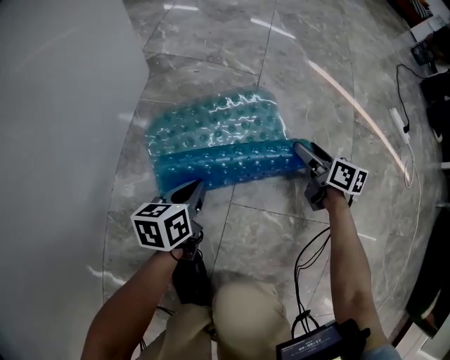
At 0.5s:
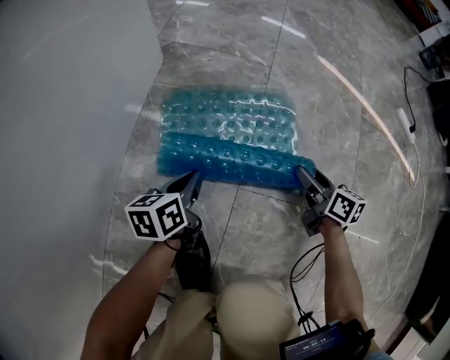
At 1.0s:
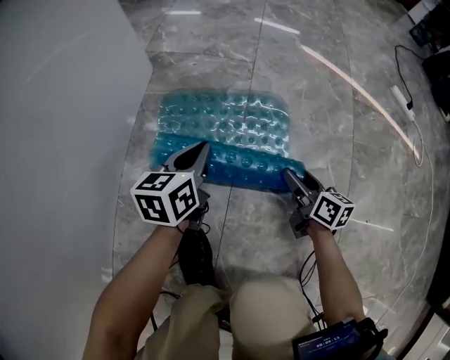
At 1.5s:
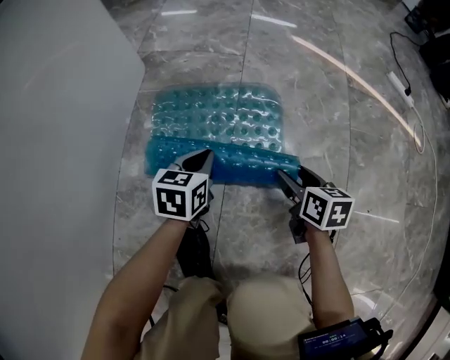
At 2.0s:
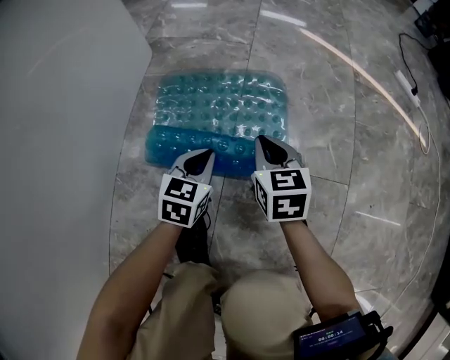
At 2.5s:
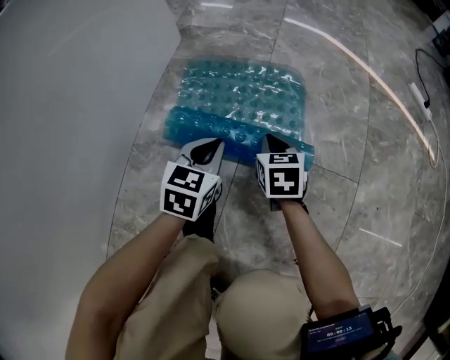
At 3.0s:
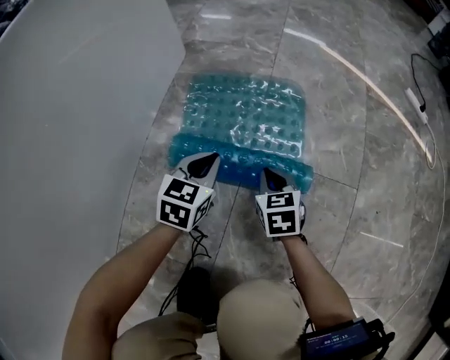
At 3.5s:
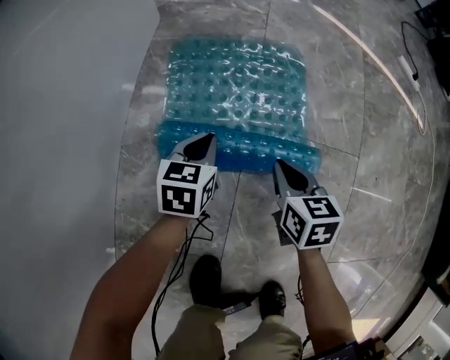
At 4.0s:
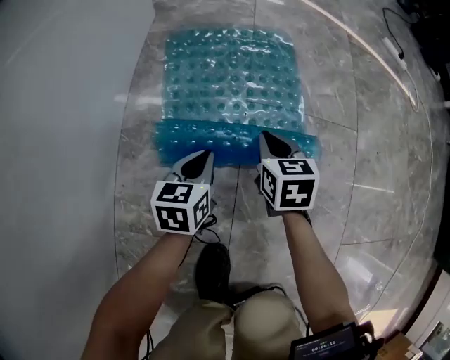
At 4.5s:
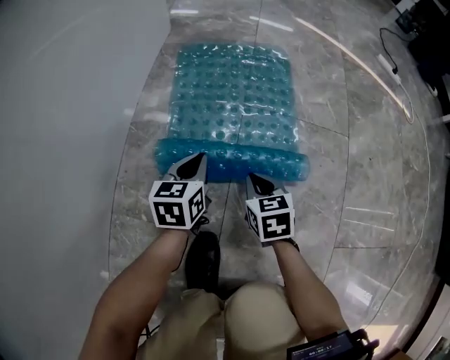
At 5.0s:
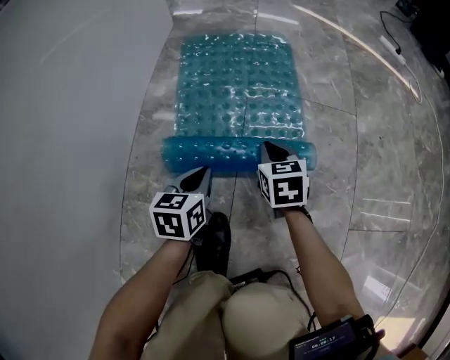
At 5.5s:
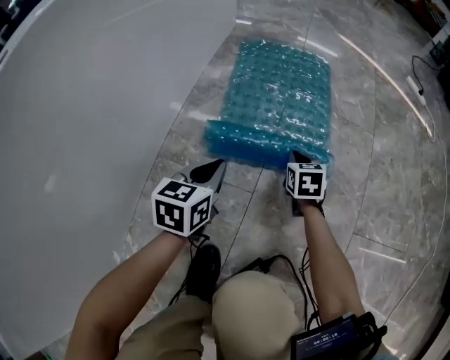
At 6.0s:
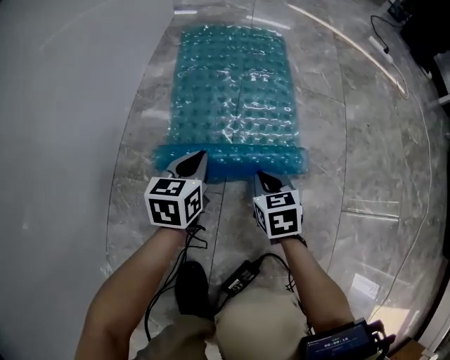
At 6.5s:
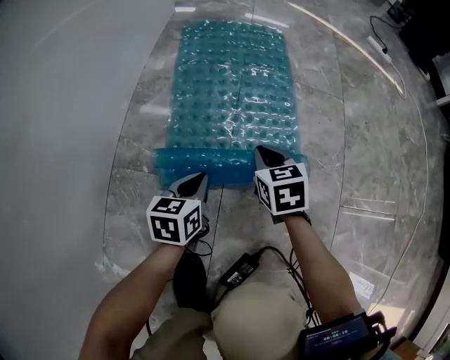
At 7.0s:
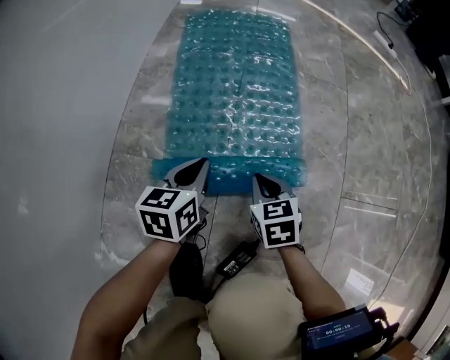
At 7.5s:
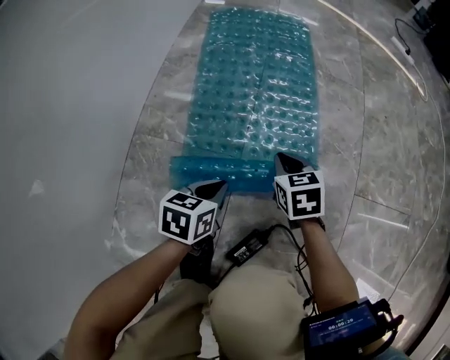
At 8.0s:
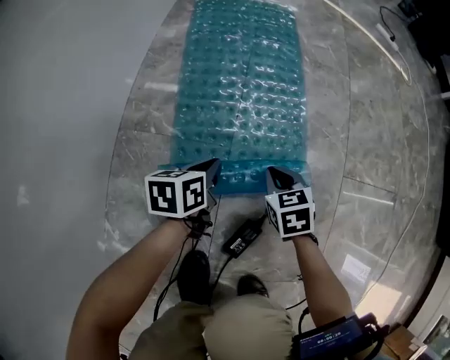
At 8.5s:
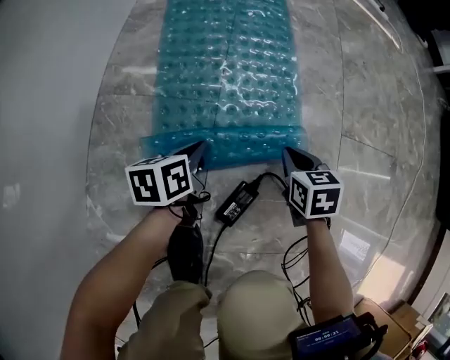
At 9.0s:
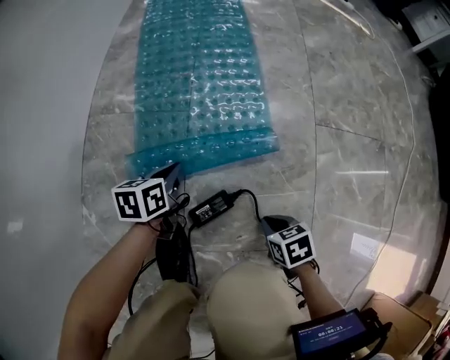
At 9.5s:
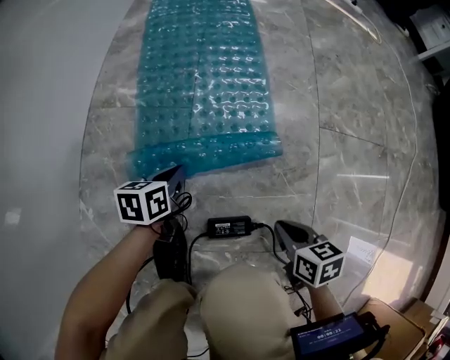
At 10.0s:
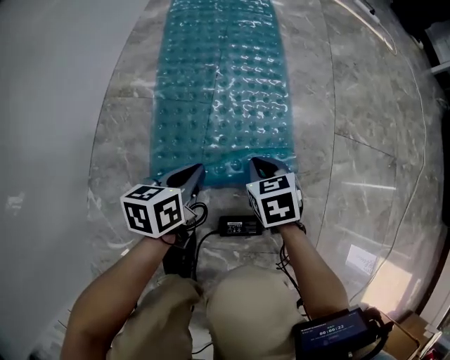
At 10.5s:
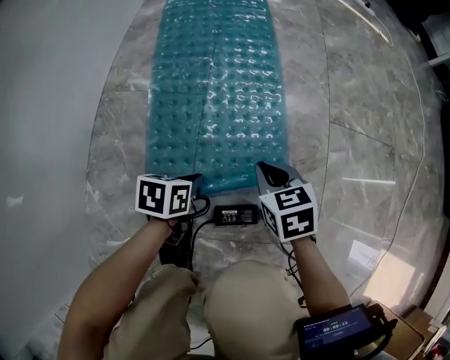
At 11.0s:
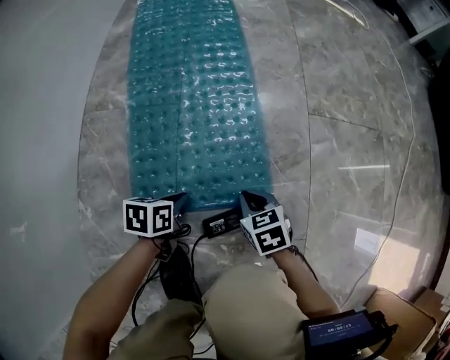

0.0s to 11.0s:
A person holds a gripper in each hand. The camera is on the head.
0.0s to 2.0s: The right gripper moves backward and to the left, some 20 cm, changes its angle by approximately 30 degrees, and closes up. The left gripper travels backward by approximately 5 cm, goes upward and returns, some 10 cm each way, and swivels approximately 40 degrees.
2.0s to 3.5s: The right gripper goes roughly 15 cm backward, while the left gripper goes some 5 cm to the left.
3.5s to 5.5s: The left gripper goes approximately 35 cm backward, while the right gripper shifts some 20 cm backward.
5.5s to 7.5s: The left gripper is displaced backward, downward and to the right by approximately 15 cm. Meanwhile the right gripper moves forward and backward over roughly 15 cm, changing direction 2 times.
7.5s to 9.0s: The right gripper shifts some 35 cm backward, and changes its angle by about 30 degrees; the left gripper travels backward by approximately 10 cm.
9.0s to 11.0s: The left gripper heads backward, covering roughly 10 cm; the right gripper moves some 15 cm forward and comes back.

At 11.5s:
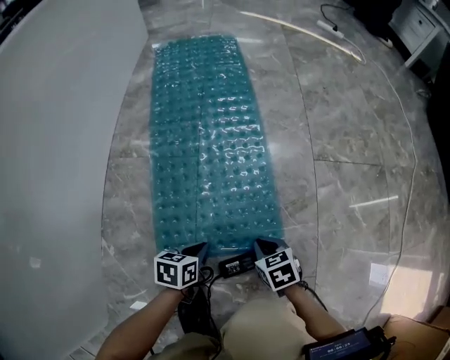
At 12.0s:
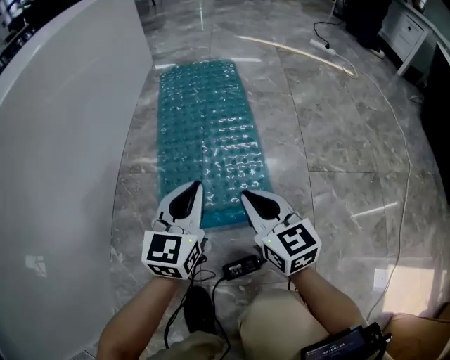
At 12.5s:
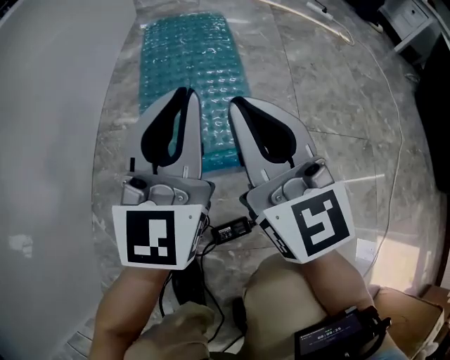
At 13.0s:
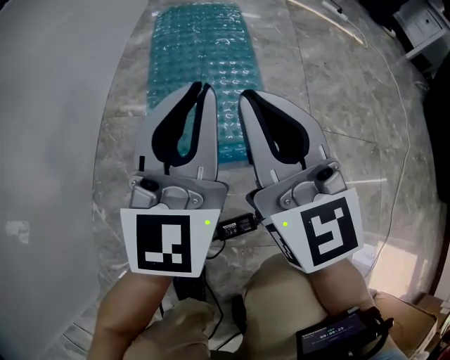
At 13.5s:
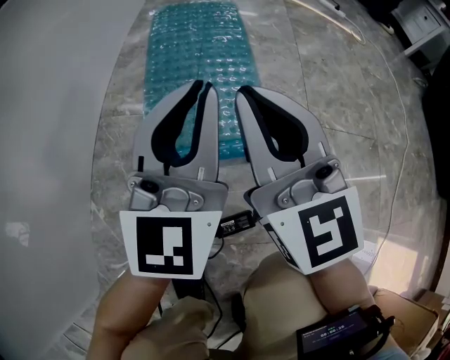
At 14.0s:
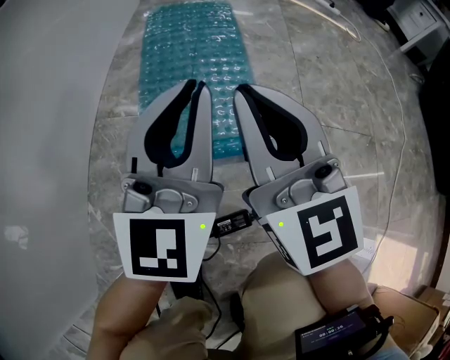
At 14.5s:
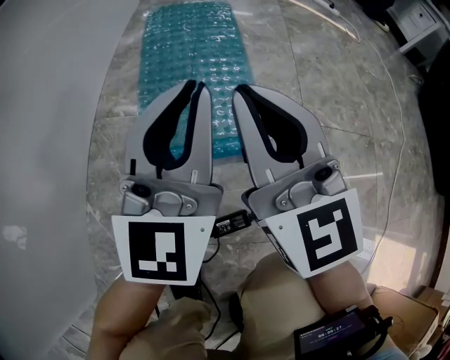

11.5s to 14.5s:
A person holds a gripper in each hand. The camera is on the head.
11.5s to 13.0s: Both grippers travel together upward, approximately 40 cm. The left gripper angles its fingers upward, by some 60 degrees. Meanwhile the right gripper tips its fingers upward by roughly 60 degrees.
13.0s to 14.5s: The two grippers keep their place.

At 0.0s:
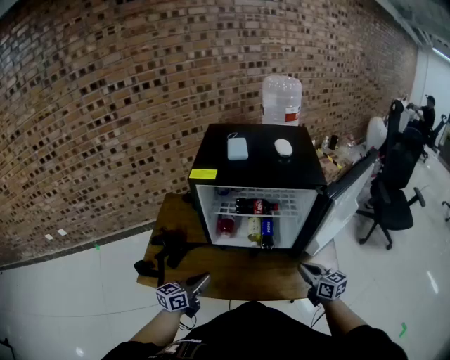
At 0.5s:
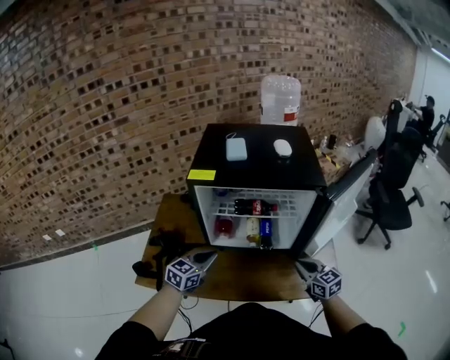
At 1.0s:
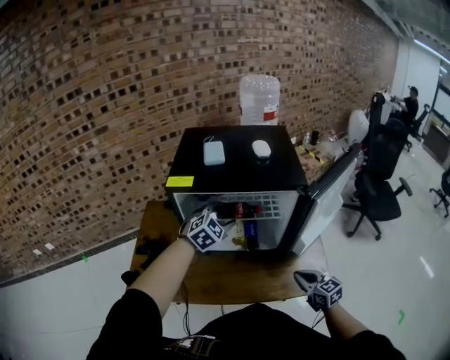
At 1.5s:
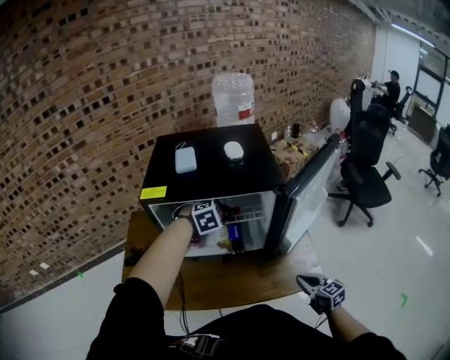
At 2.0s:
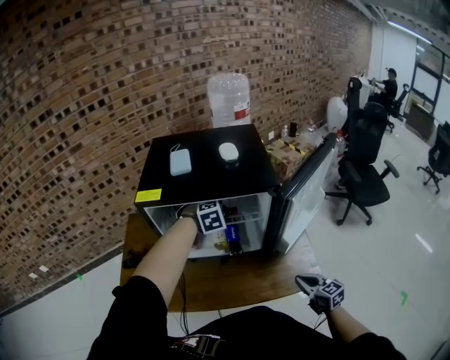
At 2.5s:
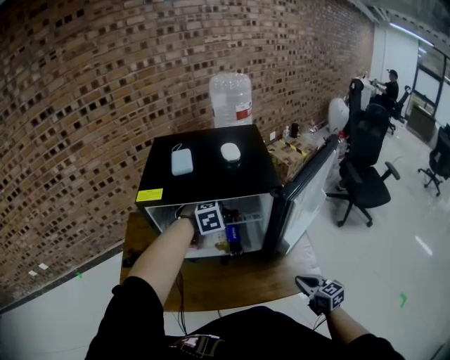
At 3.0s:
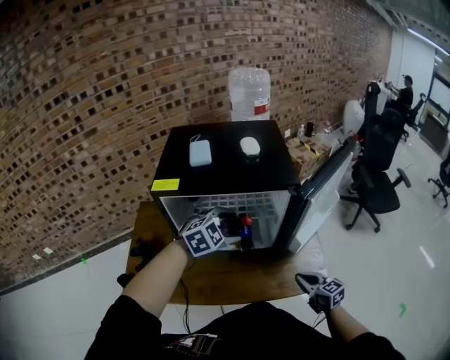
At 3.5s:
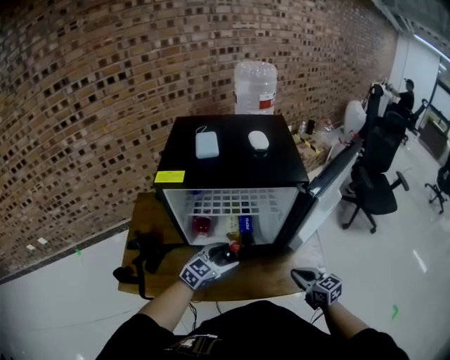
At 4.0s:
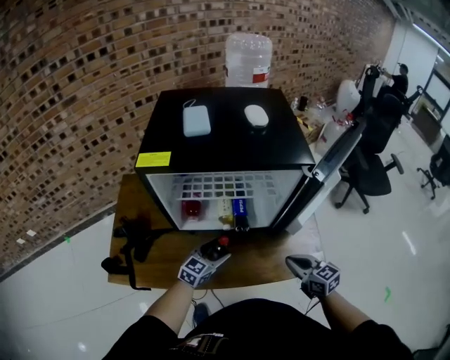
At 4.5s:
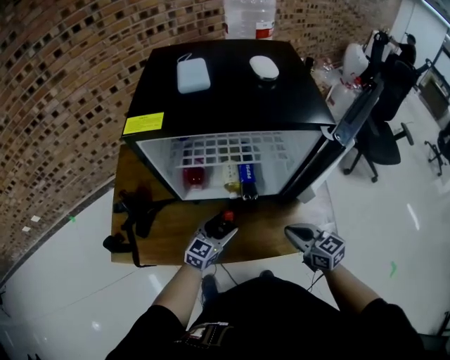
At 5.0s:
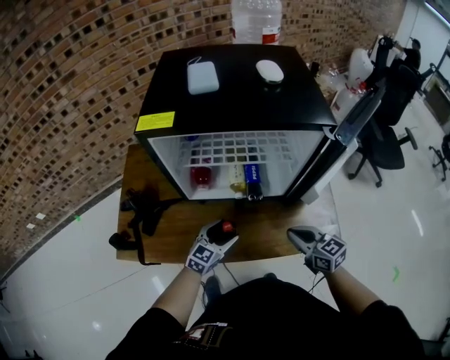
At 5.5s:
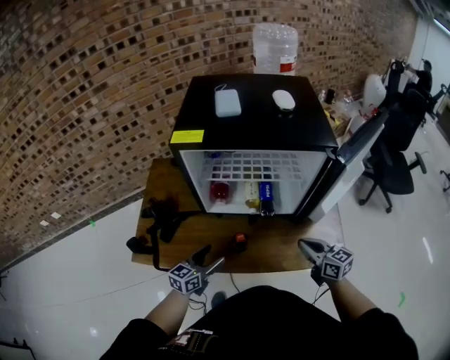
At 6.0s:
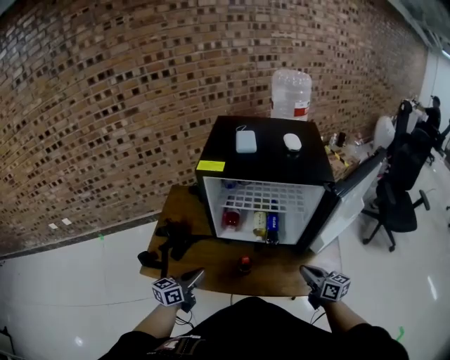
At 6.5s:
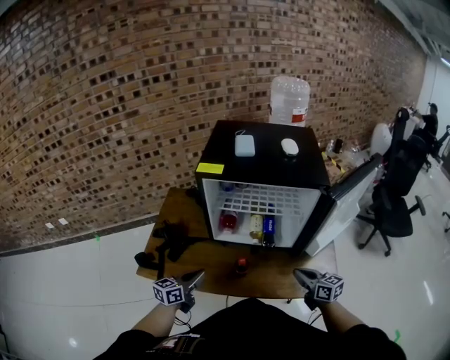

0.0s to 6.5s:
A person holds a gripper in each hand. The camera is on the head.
0.0s to 2.0s: The right gripper heads to the right and backward, covering some 10 cm, while the left gripper goes approximately 35 cm forward and to the right, twists approximately 80 degrees clockwise, seen from behind, and opens.
2.0s to 4.5s: The left gripper goes some 25 cm downward and backward, and points its fingers about 40 degrees further upward. Meanwhile the right gripper moves to the left and forward, roughly 15 cm.
4.5s to 6.5s: The left gripper is displaced to the left, backward and upward by some 25 cm, changes its angle by roughly 30 degrees, and closes. The right gripper shifts by about 5 cm.

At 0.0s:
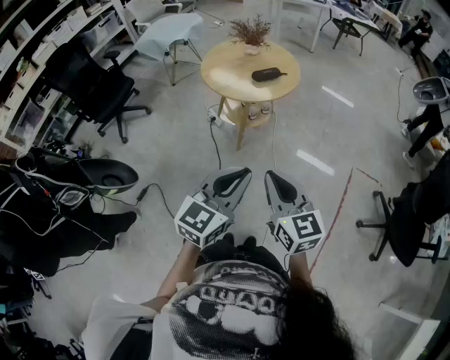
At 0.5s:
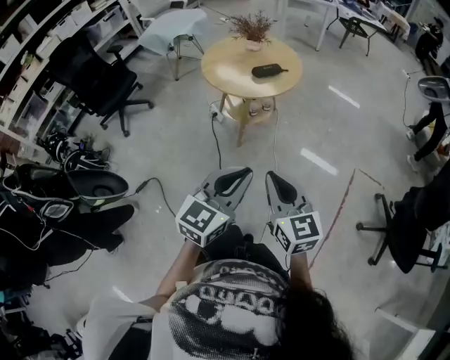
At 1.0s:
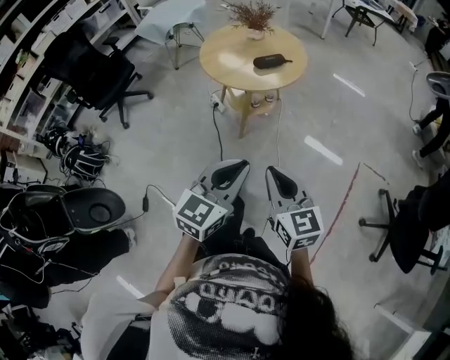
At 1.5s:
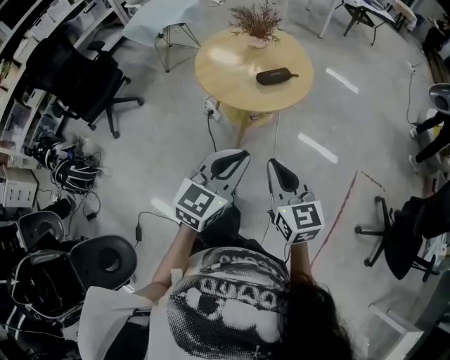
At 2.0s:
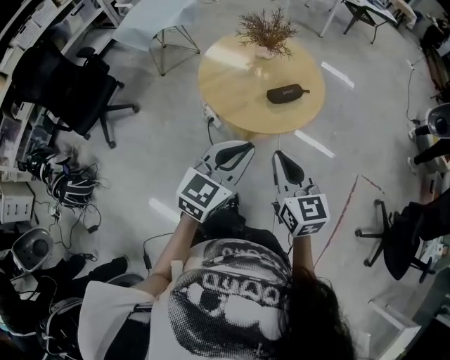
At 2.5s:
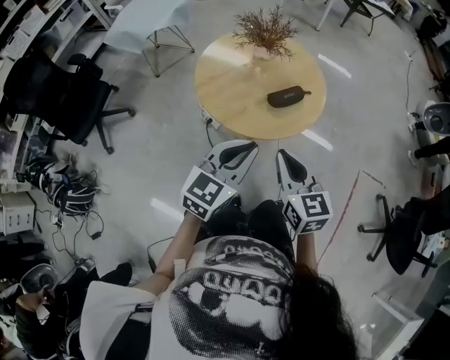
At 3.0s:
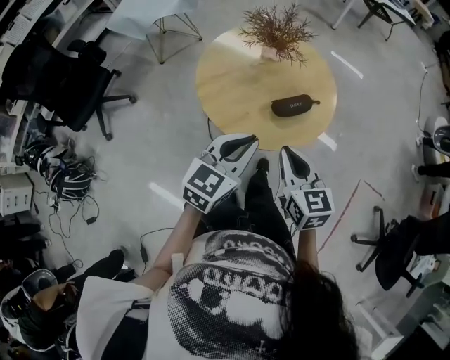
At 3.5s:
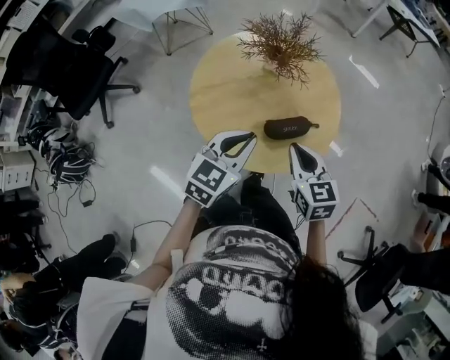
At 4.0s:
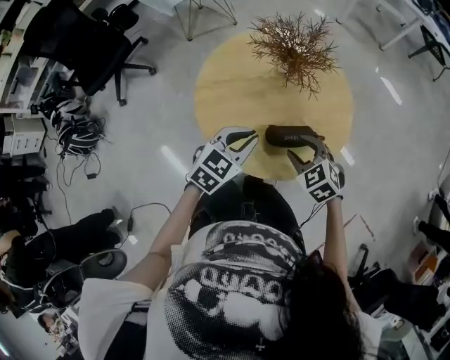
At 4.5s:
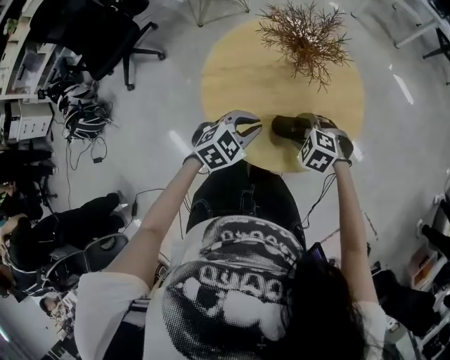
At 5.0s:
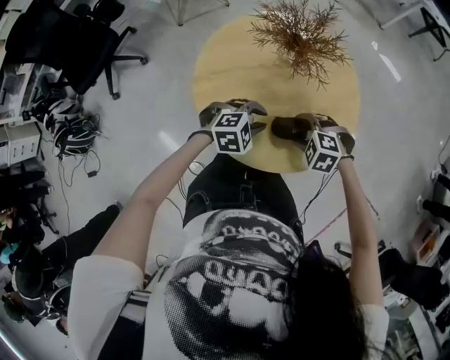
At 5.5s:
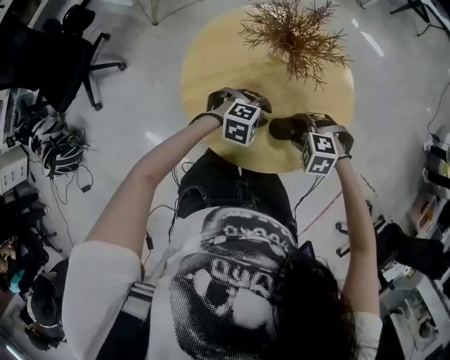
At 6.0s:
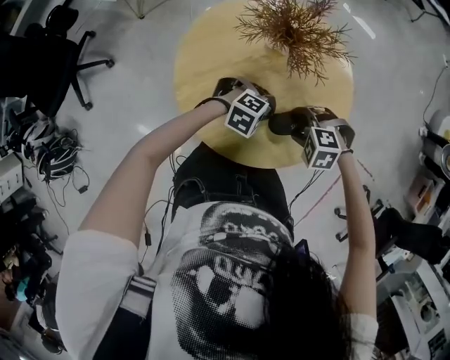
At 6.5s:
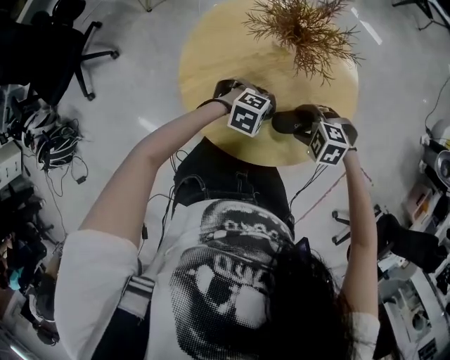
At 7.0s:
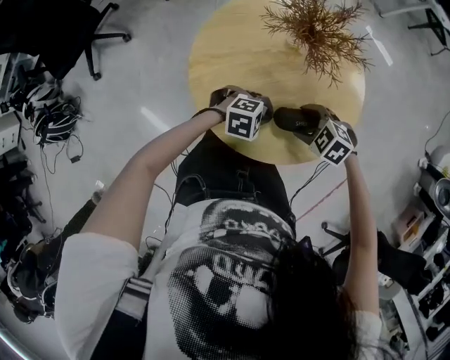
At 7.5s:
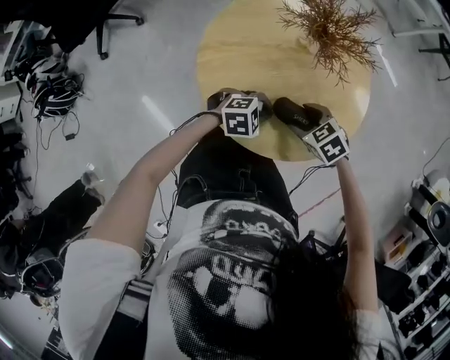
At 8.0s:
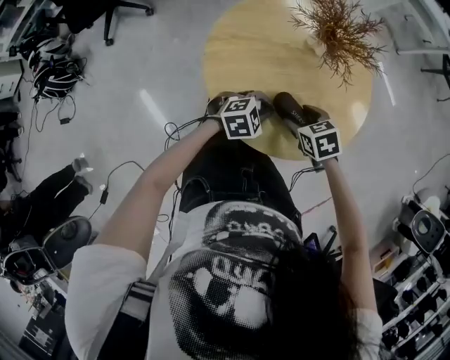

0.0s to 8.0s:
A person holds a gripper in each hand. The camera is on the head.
0.0s to 2.0s: Both grippers travel together forward, roughly 35 cm.
2.0s to 4.0s: The two grippers go some 35 cm forward and downward. The right gripper points its fingers approximately 30 degrees further downward, and opens up; the left gripper changes its angle by approximately 20 degrees.
4.0s to 6.0s: The right gripper moves downward, about 5 cm, and rotates some 40 degrees; the left gripper heads downward, covering some 15 cm, and turns by roughly 80 degrees.
6.0s to 8.0s: The left gripper rolls counterclockwise, seen from behind, by roughly 50 degrees. Meanwhile the right gripper rolls clockwise, seen from behind, by about 40 degrees.
